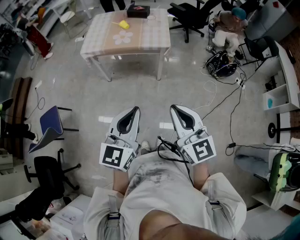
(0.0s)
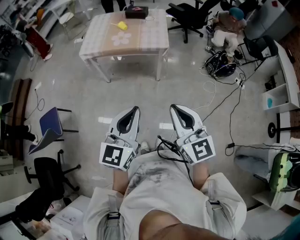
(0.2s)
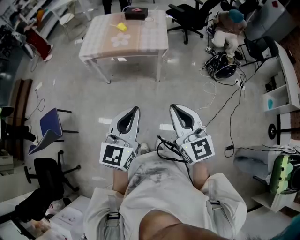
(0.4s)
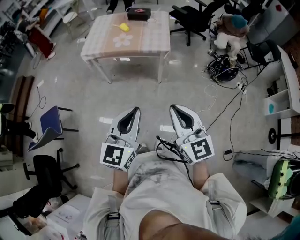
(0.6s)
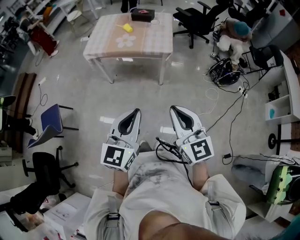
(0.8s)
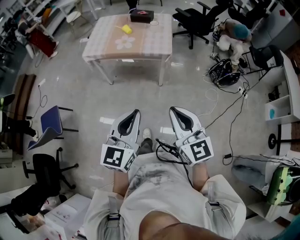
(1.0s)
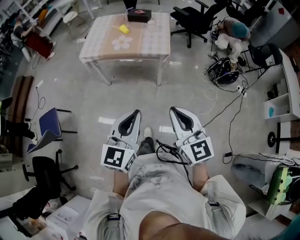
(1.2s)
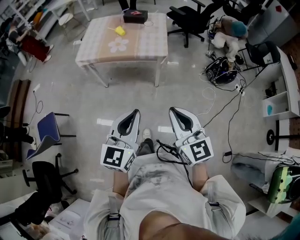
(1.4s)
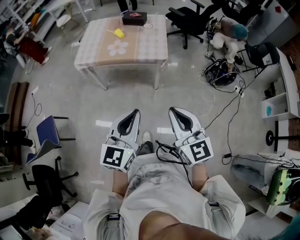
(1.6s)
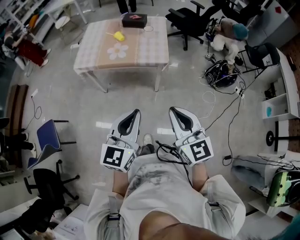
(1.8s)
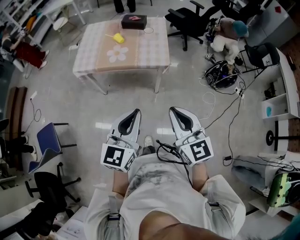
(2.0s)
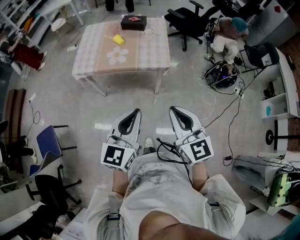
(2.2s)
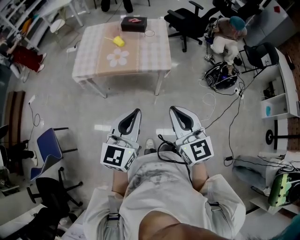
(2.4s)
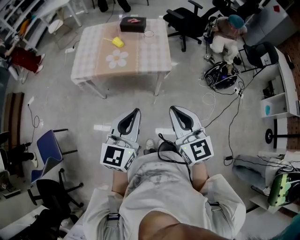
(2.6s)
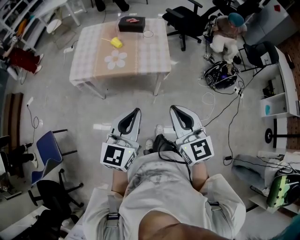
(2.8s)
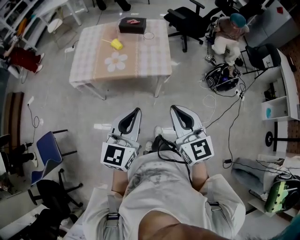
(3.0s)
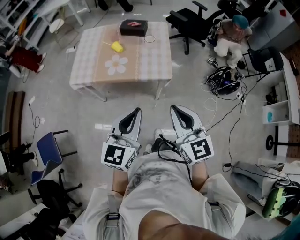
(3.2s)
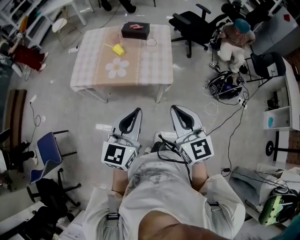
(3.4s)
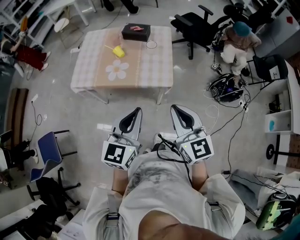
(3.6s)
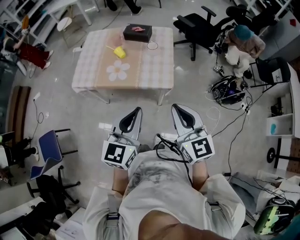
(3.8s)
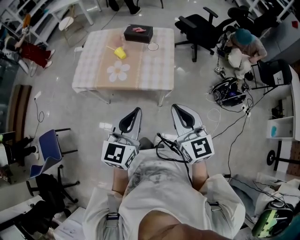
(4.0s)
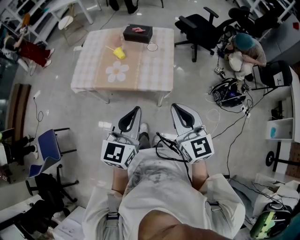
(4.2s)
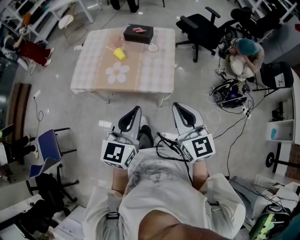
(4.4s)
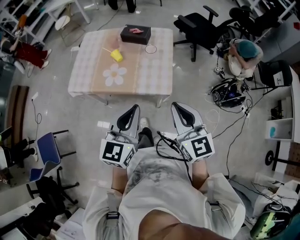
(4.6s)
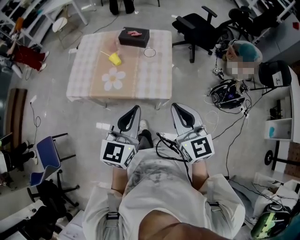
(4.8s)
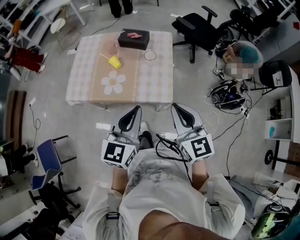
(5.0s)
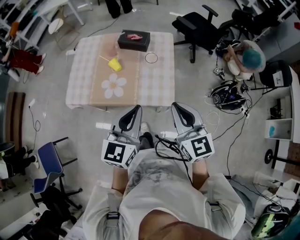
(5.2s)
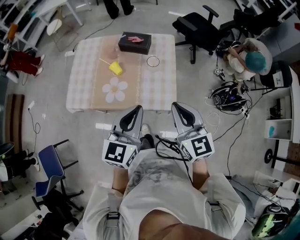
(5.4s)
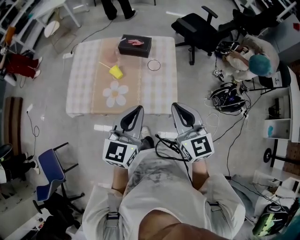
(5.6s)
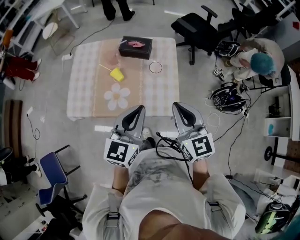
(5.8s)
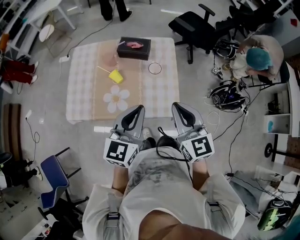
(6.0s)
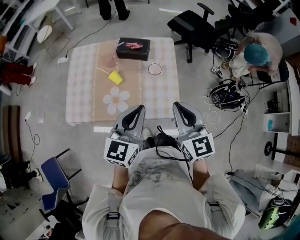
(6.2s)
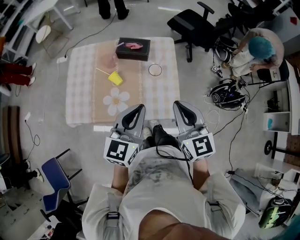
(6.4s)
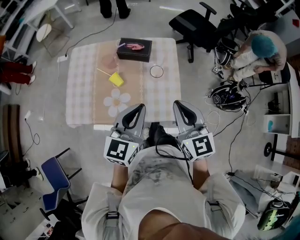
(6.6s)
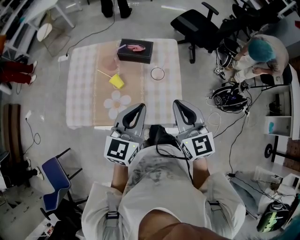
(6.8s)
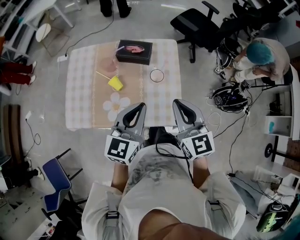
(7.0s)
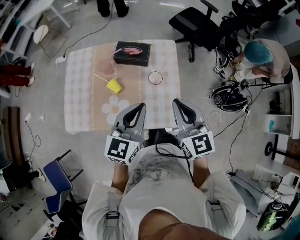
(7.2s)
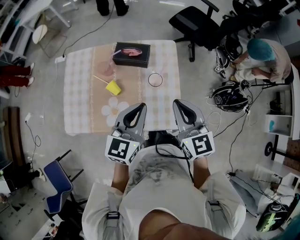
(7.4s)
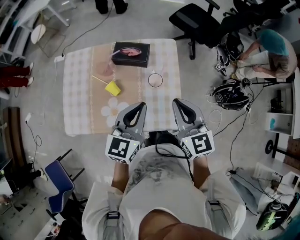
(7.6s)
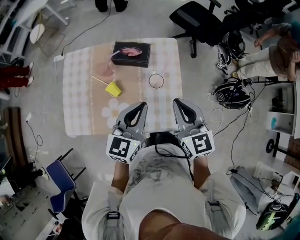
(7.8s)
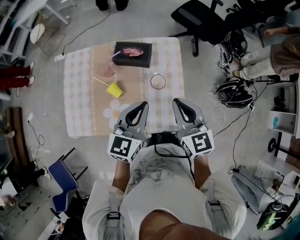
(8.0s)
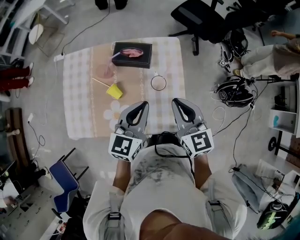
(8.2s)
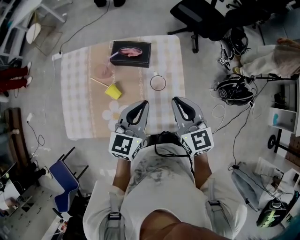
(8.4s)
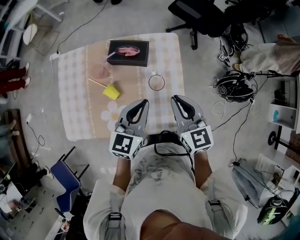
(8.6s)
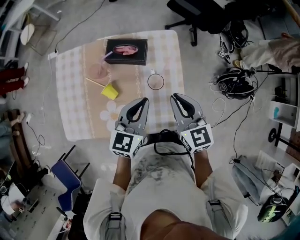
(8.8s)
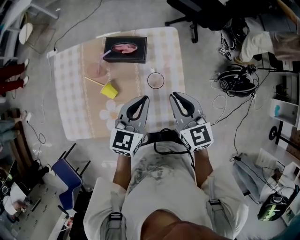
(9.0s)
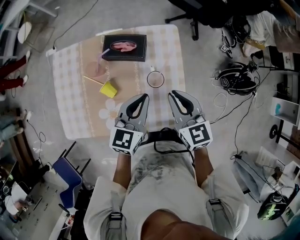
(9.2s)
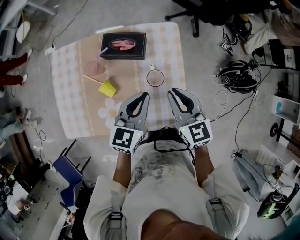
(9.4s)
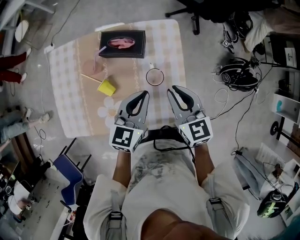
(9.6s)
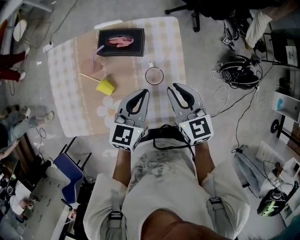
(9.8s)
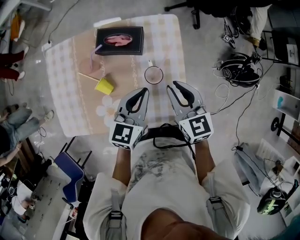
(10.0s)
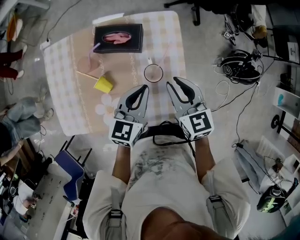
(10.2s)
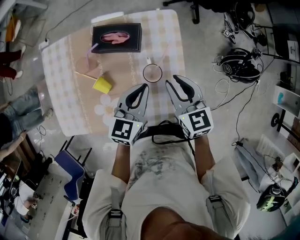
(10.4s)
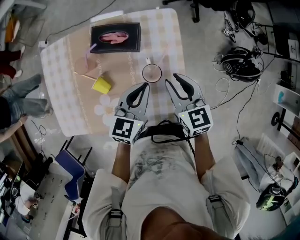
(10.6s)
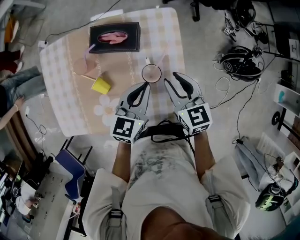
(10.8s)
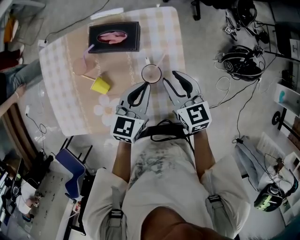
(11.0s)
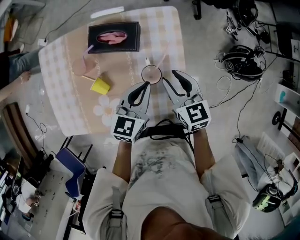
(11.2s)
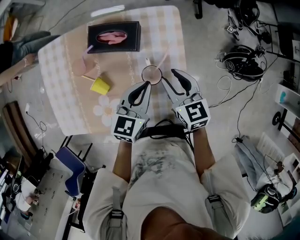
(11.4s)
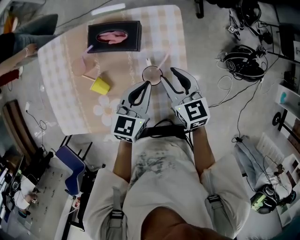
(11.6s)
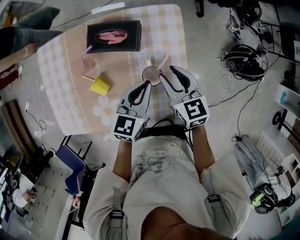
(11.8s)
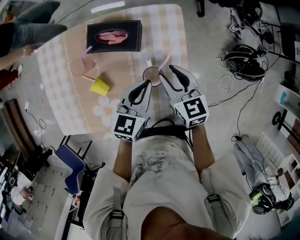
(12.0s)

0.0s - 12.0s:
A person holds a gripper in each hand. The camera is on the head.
0.0s - 1.6s: Both grippers move forward, approximately 15 cm.
1.6s - 3.0s: Both grippers move forward, approximately 20 cm.
3.0s - 4.4s: Both grippers move forward and to the right, about 15 cm.
4.4s - 6.0s: The grippers both shift forward by some 20 cm.
6.0s - 7.6s: Both grippers travel together forward, some 15 cm.
7.6s - 9.0s: The right gripper is displaced downward and forward by about 10 cm. The left gripper goes some 10 cm forward and downward.
9.0s - 10.4s: The grippers both shift downward by roughly 5 cm.
10.4s - 12.0s: The right gripper travels downward by some 5 cm. Meanwhile the left gripper shifts by roughly 5 cm.

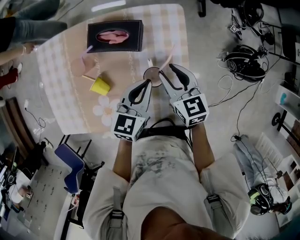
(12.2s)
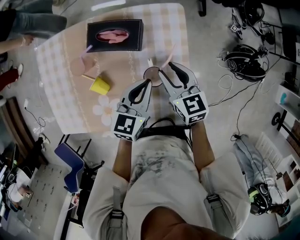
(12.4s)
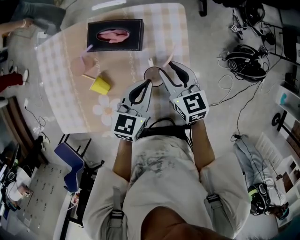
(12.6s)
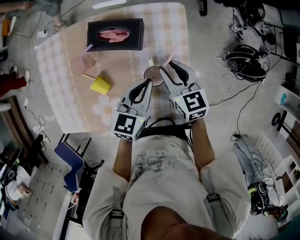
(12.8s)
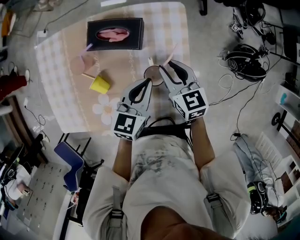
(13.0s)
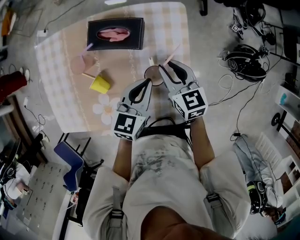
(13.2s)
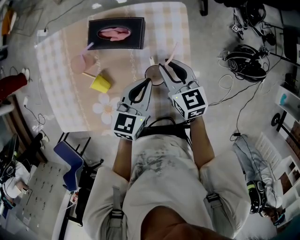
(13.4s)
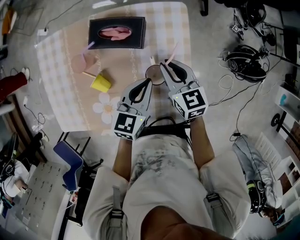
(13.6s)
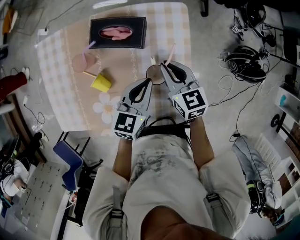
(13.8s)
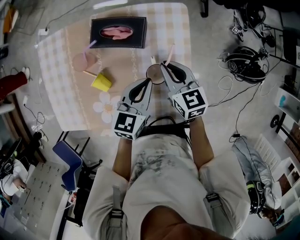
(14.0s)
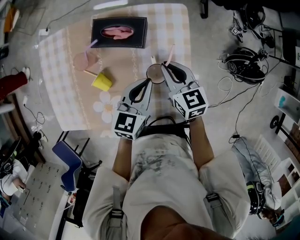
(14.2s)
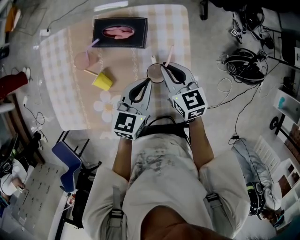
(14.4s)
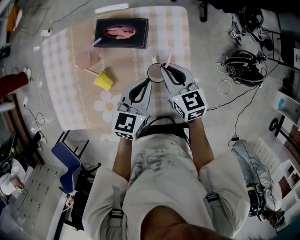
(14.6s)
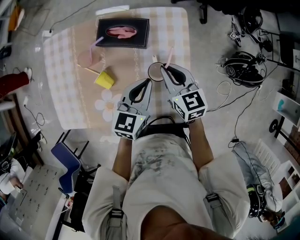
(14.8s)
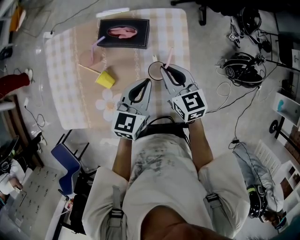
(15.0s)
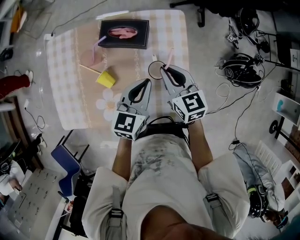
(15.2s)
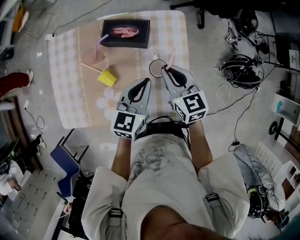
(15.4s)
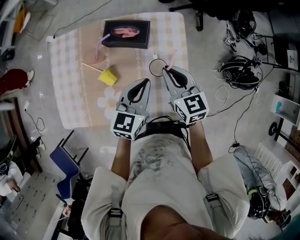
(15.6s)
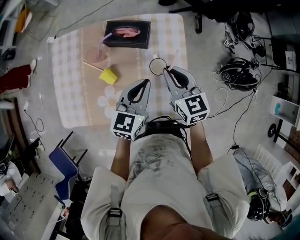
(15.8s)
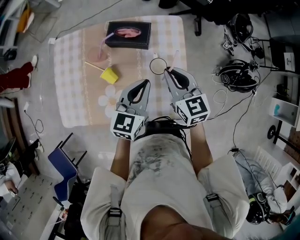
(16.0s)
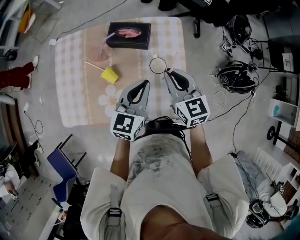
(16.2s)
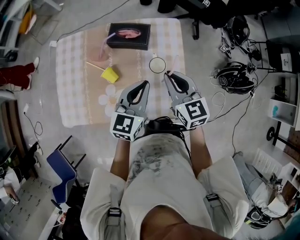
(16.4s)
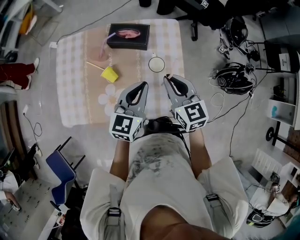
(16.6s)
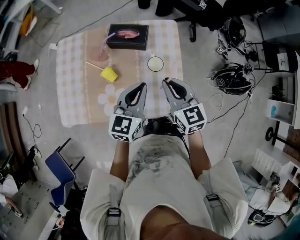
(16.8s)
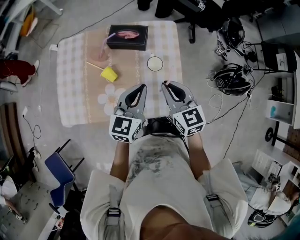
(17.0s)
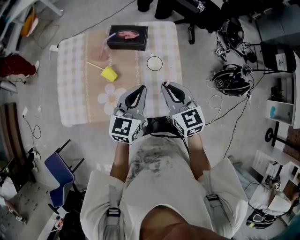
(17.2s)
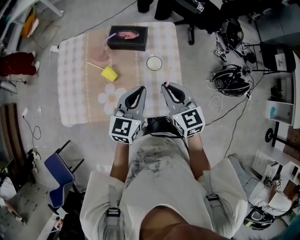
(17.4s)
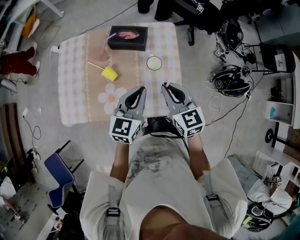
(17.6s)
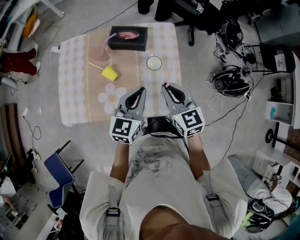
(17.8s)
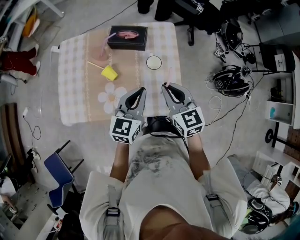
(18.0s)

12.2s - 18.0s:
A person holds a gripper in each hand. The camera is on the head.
12.2s - 13.6s: The right gripper closes up.
13.6s - 15.0s: The right gripper changes place by approximately 5 cm, while the left gripper changes place by some 5 cm.
15.0s - 16.6s: Both grippers travel together backward and upward, about 15 cm.
16.6s - 18.0s: The two grippers go approximately 5 cm backward.

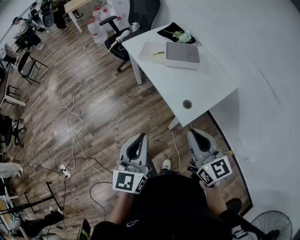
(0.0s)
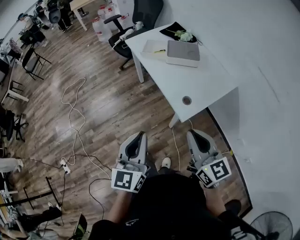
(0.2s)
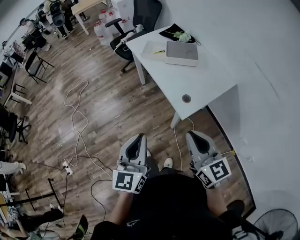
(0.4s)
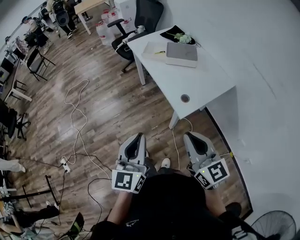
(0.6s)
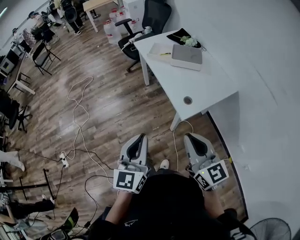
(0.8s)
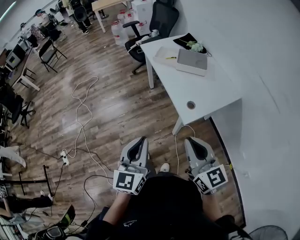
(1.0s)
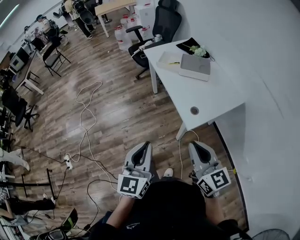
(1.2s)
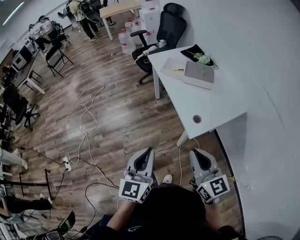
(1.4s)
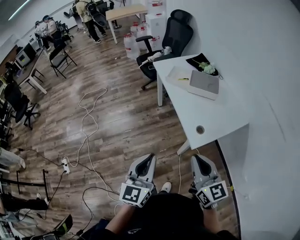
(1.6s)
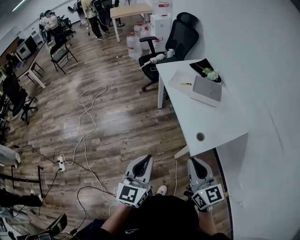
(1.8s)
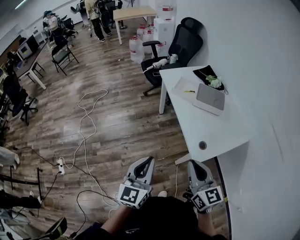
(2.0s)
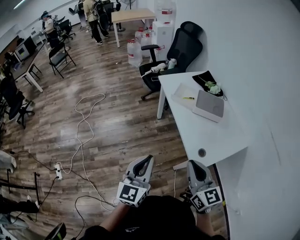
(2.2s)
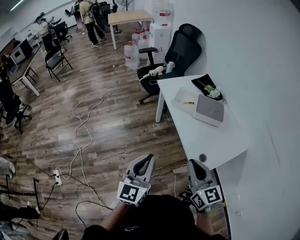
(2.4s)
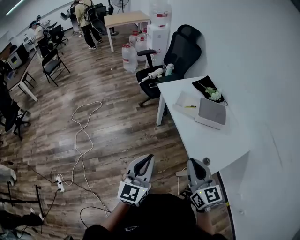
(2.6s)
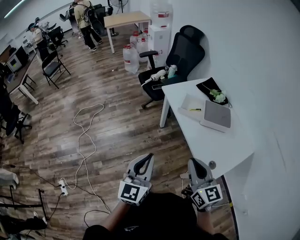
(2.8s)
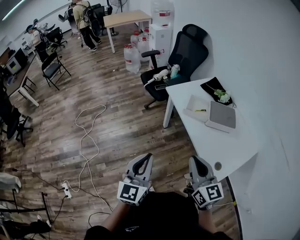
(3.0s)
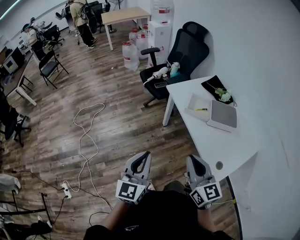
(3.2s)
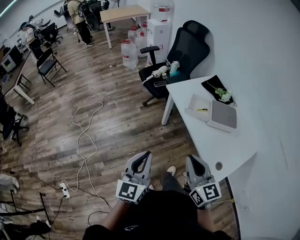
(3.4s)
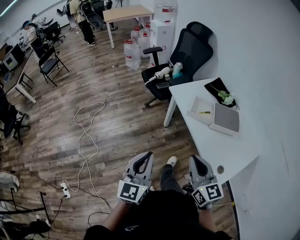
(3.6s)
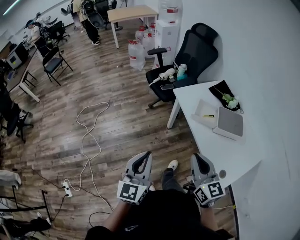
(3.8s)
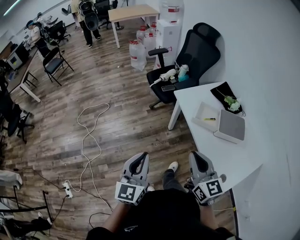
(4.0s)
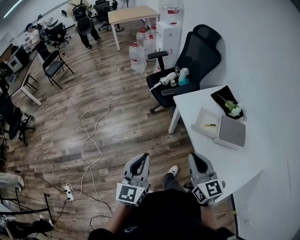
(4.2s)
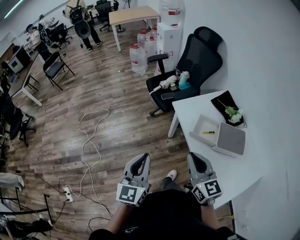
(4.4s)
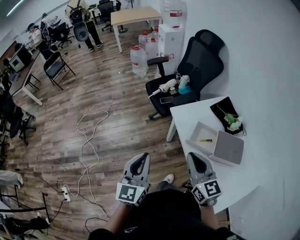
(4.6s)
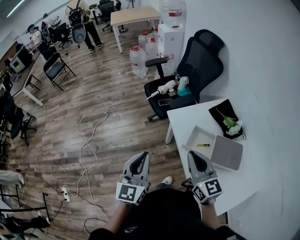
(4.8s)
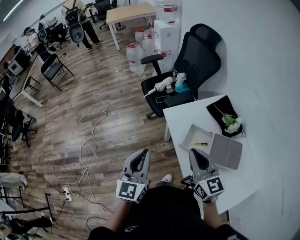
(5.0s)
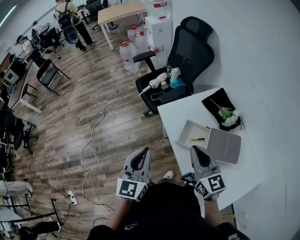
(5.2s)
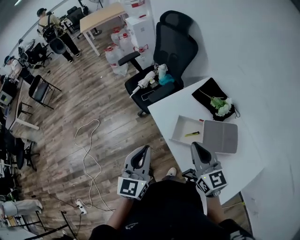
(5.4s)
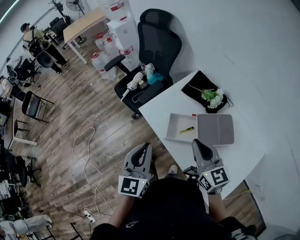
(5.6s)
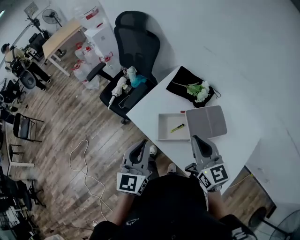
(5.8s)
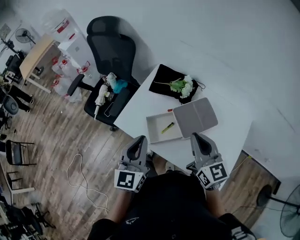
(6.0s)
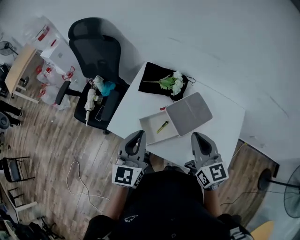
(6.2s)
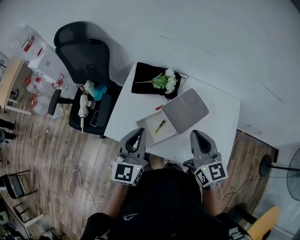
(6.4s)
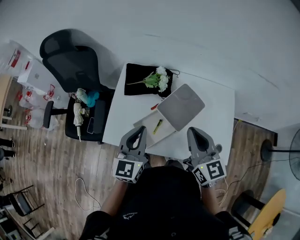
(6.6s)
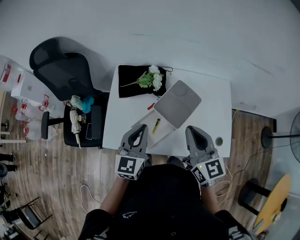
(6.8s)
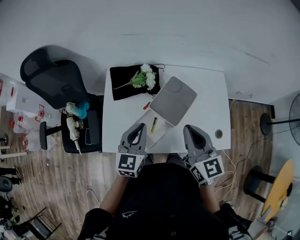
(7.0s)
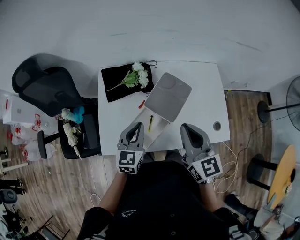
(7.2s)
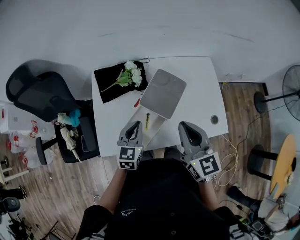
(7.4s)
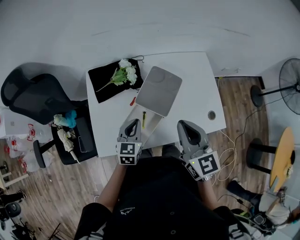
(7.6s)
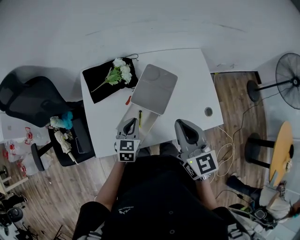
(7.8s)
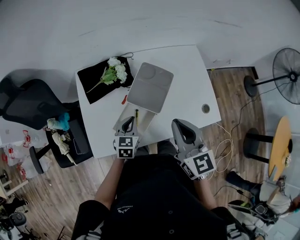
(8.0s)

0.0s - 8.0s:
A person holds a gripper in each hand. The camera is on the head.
0.0s - 1.6s: The left gripper is displaced backward by approximately 5 cm.
1.6s - 3.2s: Both grippers move forward and to the left, approximately 35 cm.
3.2s - 4.8s: Both grippers travel together forward, about 25 cm.
4.8s - 6.4s: The right gripper changes place by some 20 cm, and rotates approximately 60 degrees; the left gripper moves approximately 30 cm, and rotates roughly 60 degrees.
6.4s - 8.0s: The left gripper goes approximately 25 cm downward, and rotates some 40 degrees, while the right gripper swivels some 30 degrees.
